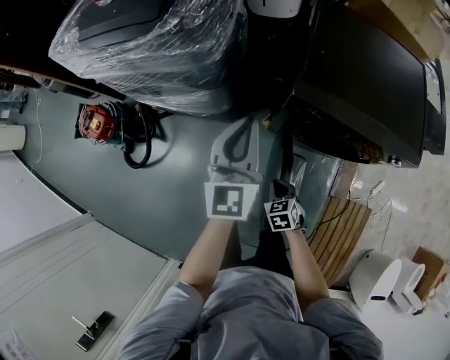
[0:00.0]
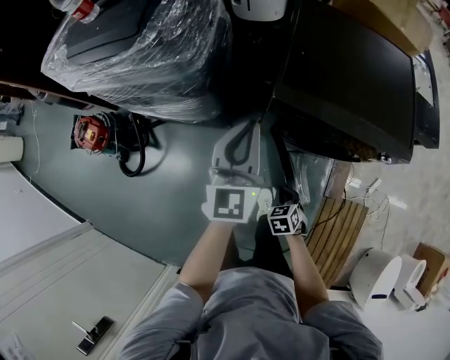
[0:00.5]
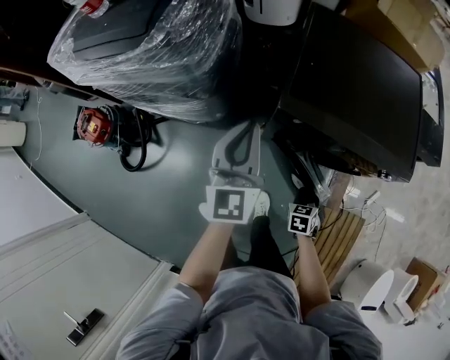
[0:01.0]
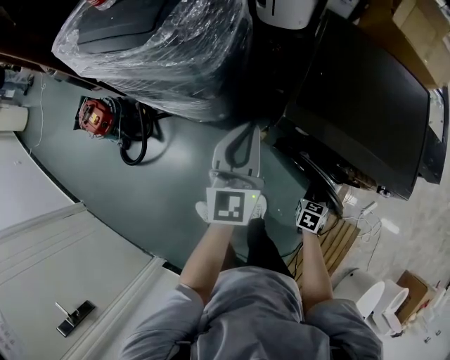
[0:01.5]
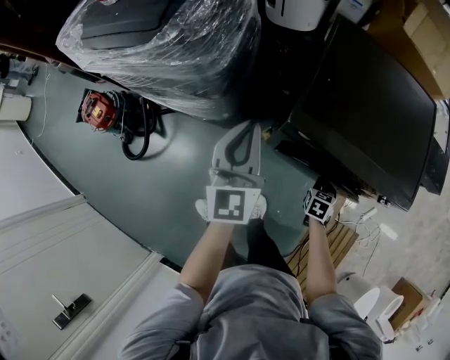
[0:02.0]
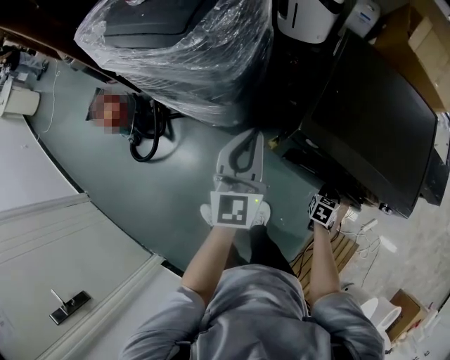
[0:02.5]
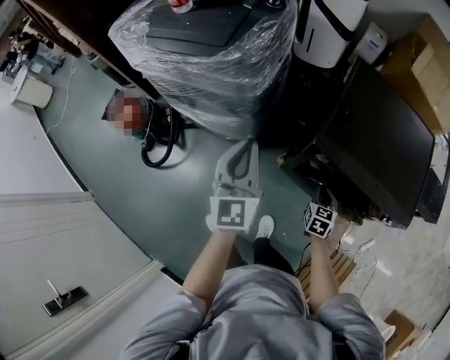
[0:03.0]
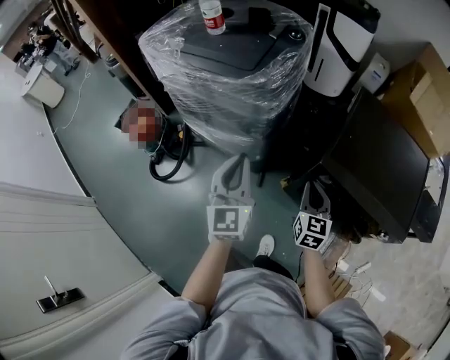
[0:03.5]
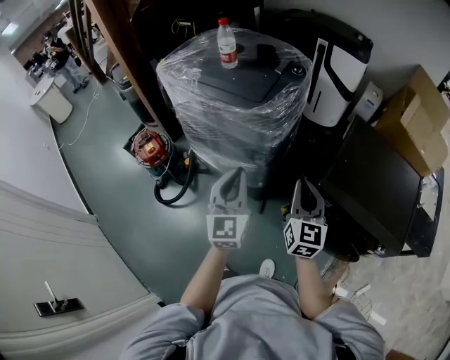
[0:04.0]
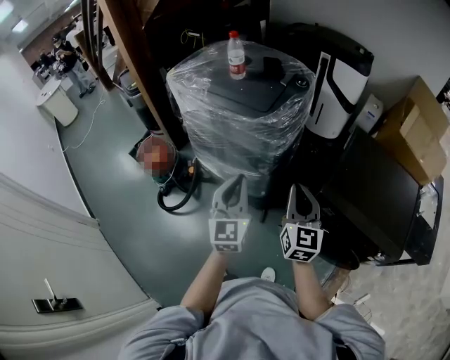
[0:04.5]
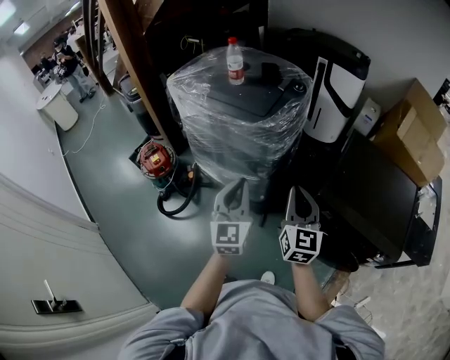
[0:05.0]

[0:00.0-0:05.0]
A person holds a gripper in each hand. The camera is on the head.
0:00.0 to 0:02.5: The right gripper shifts some 25 cm to the right and forward, and rotates roughly 30 degrees.
0:02.5 to 0:05.0: The left gripper changes place by approximately 25 cm, while the right gripper goes roughly 40 cm upward, and tilts its fingers about 50 degrees upward.

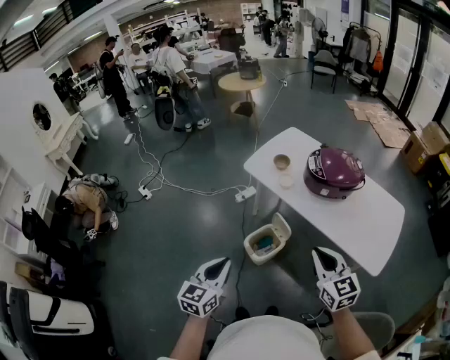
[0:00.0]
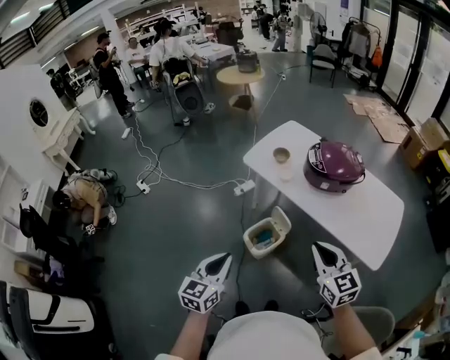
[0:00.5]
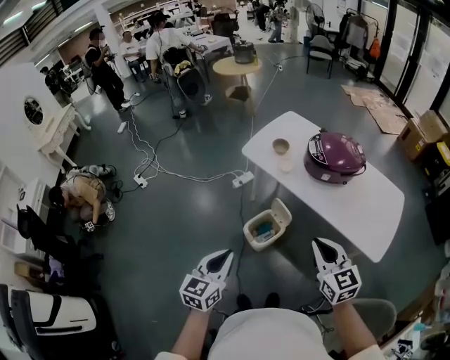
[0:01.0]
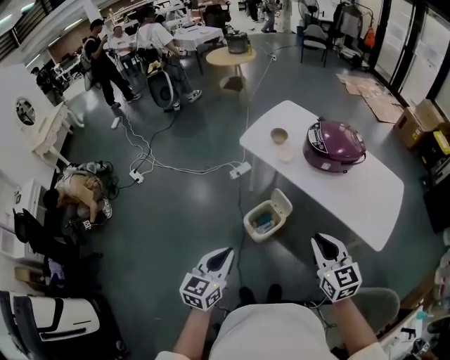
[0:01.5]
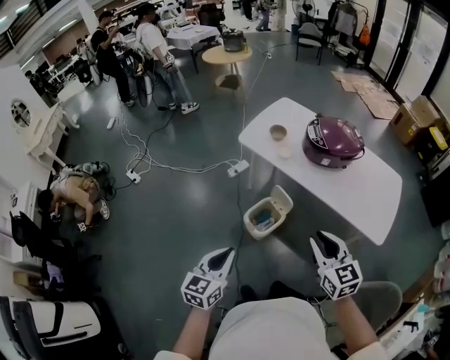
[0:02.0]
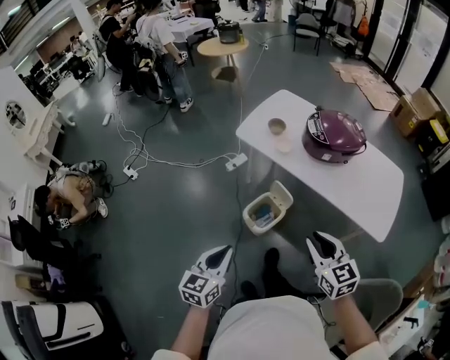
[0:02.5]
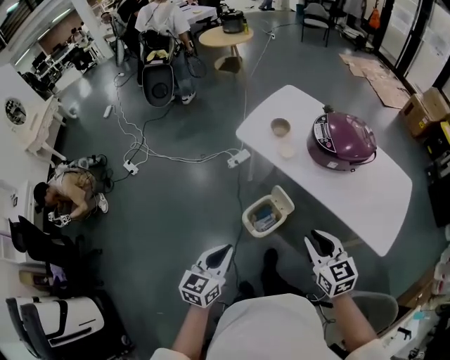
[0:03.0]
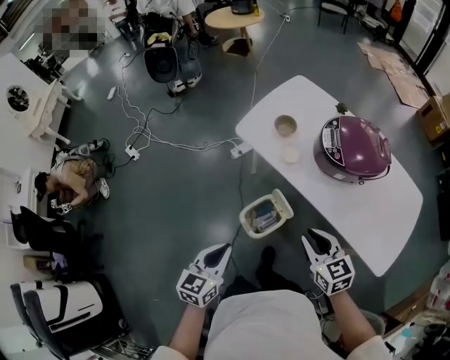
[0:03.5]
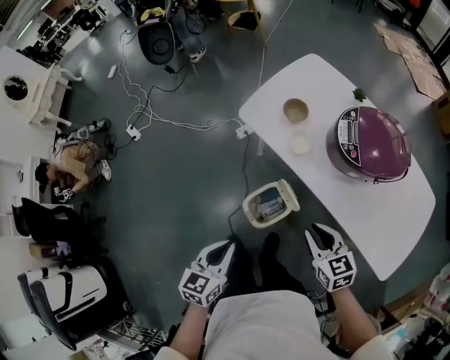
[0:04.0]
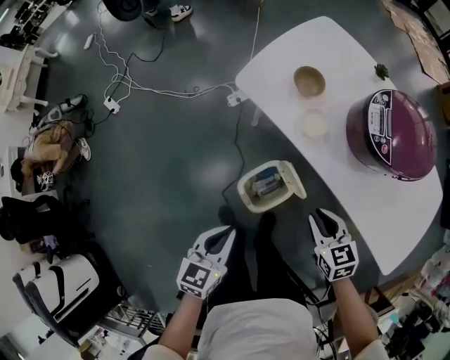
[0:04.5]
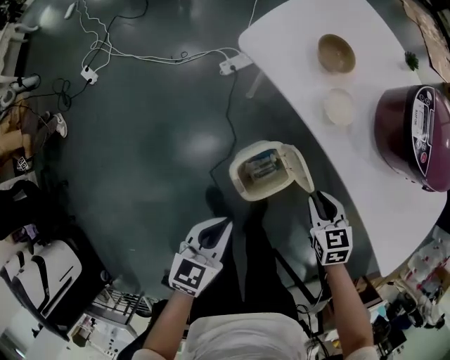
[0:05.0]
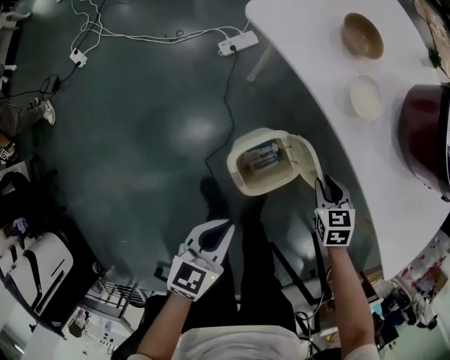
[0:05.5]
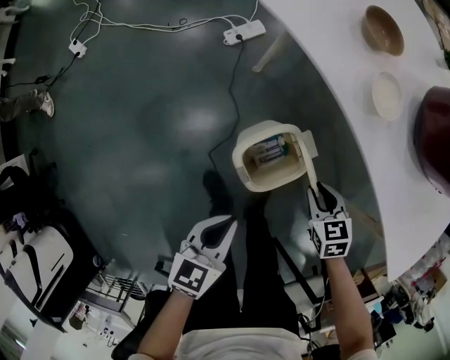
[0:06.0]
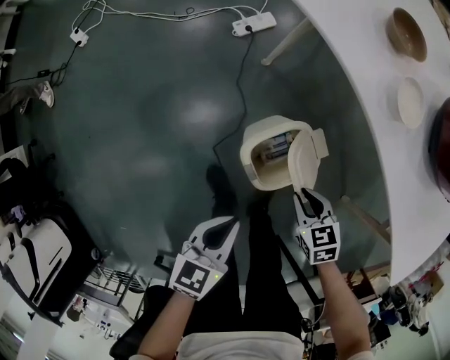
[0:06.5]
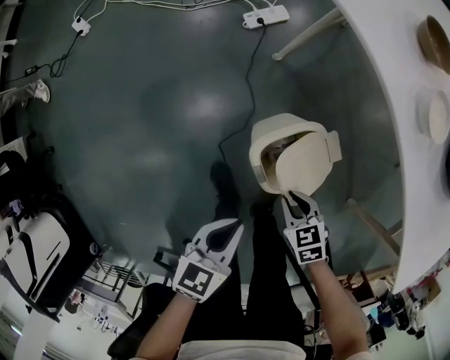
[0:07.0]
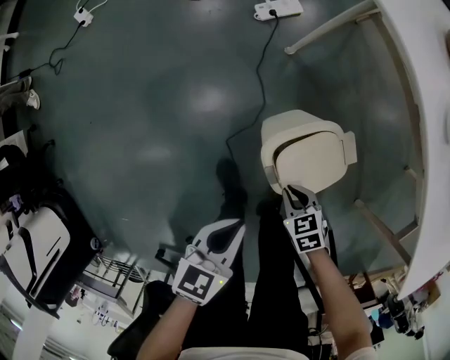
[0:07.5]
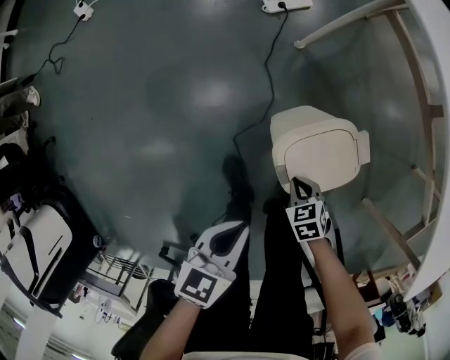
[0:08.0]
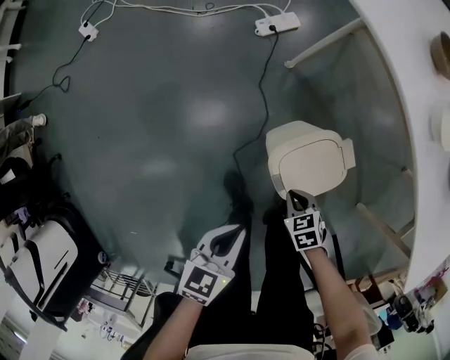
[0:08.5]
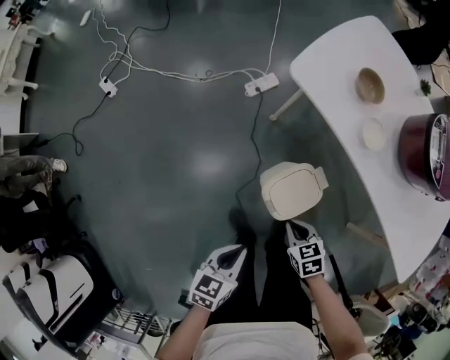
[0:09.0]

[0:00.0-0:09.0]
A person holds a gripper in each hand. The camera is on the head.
0:00.0 to 0:02.0: The left gripper shifts by approximately 5 cm. Meanwhile the right gripper goes approximately 5 cm to the left, and opens.
0:02.0 to 0:04.5: Both grippers travel together forward and downward, some 40 cm. The right gripper turns by some 30 degrees.
0:04.5 to 0:07.0: The right gripper travels downward and to the left by some 35 cm, and rotates some 30 degrees. Meanwhile the left gripper is displaced downward by about 25 cm.
0:07.0 to 0:09.0: The right gripper travels upward by approximately 15 cm, while the left gripper heads upward and to the left, covering about 15 cm.

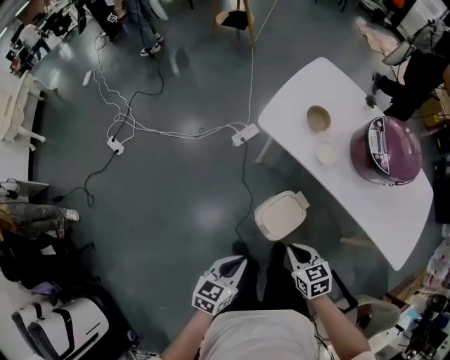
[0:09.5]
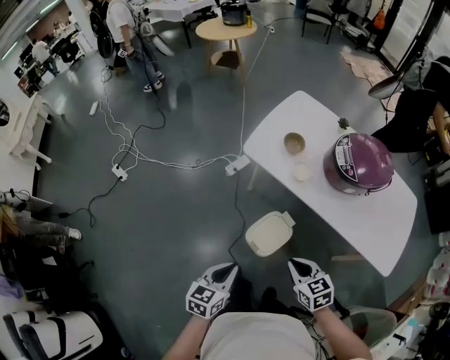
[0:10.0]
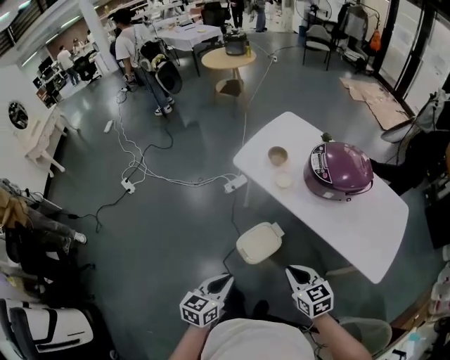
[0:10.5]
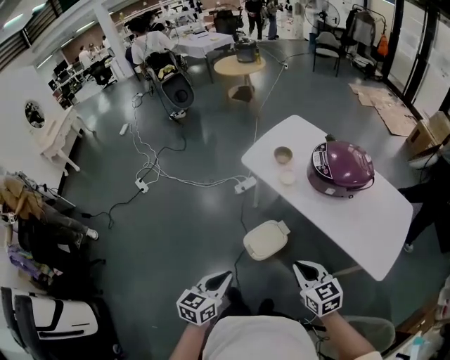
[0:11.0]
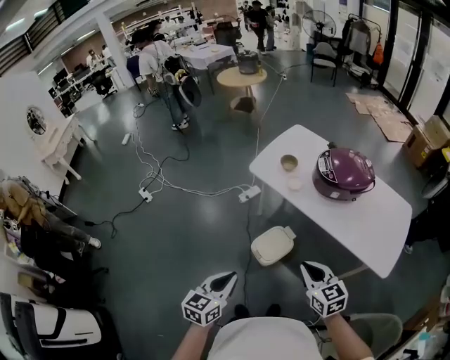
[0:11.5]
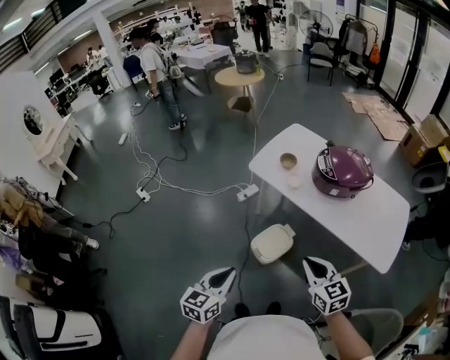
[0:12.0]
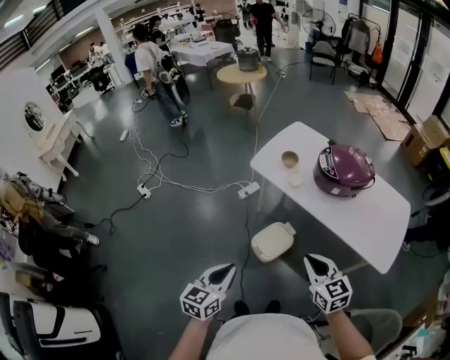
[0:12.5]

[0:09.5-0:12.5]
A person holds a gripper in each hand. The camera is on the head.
0:09.5 to 0:11.0: The left gripper shifts roughly 25 cm upward, backward and to the right. Meanwhile the right gripper heads upward, to the right and backward, covering roughly 30 cm, and turns by about 20 degrees.
0:11.0 to 0:12.5: The left gripper moves to the left, approximately 5 cm, while the right gripper goes roughly 5 cm upward.

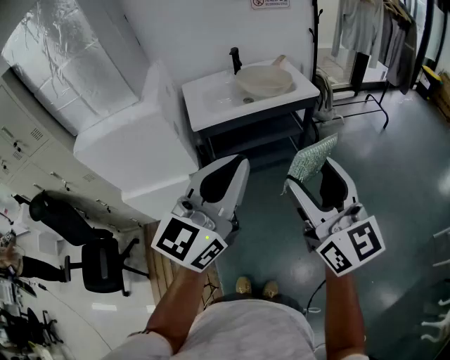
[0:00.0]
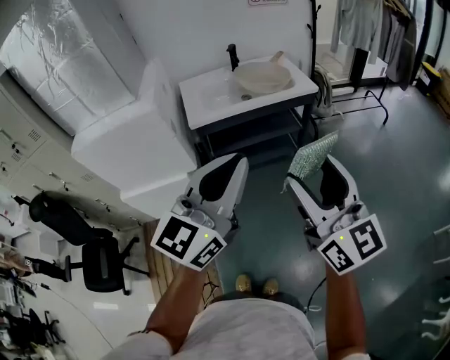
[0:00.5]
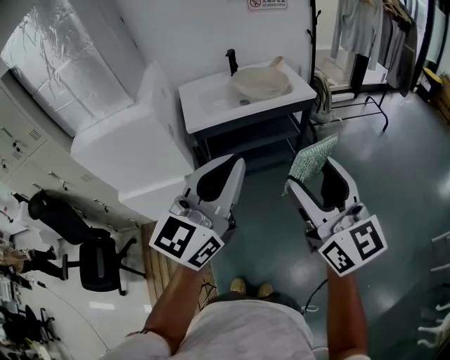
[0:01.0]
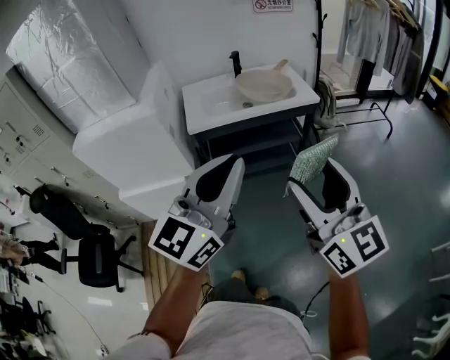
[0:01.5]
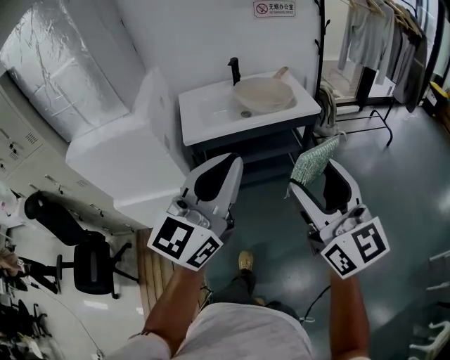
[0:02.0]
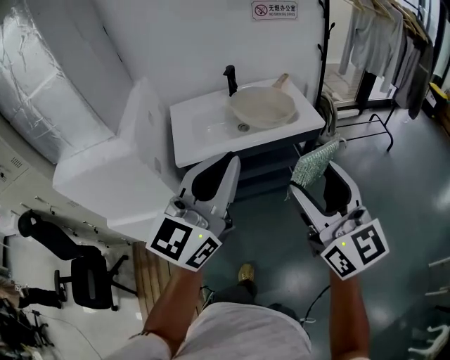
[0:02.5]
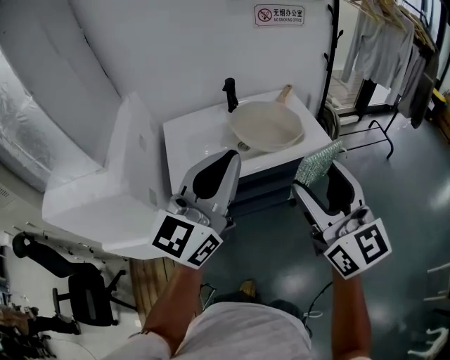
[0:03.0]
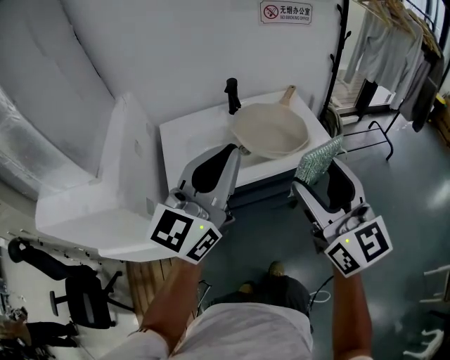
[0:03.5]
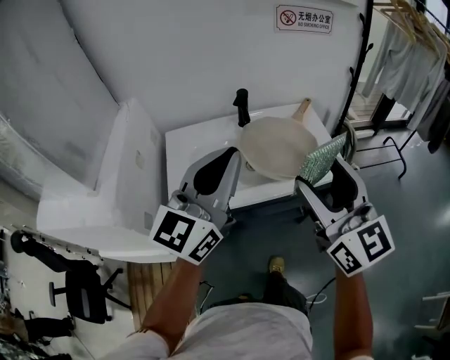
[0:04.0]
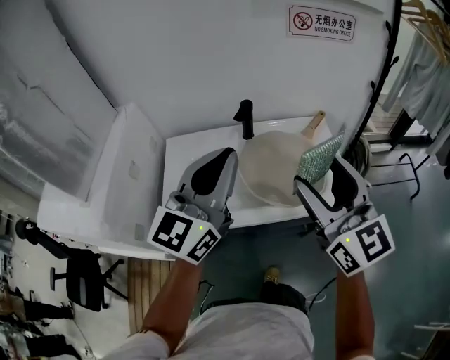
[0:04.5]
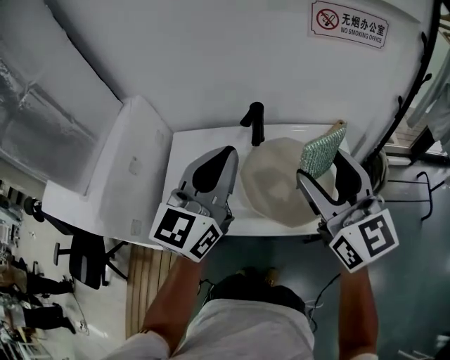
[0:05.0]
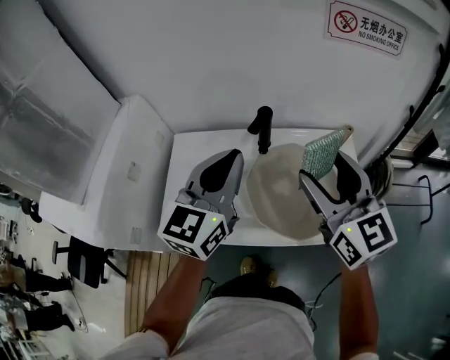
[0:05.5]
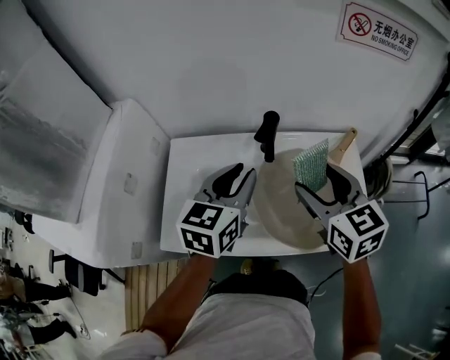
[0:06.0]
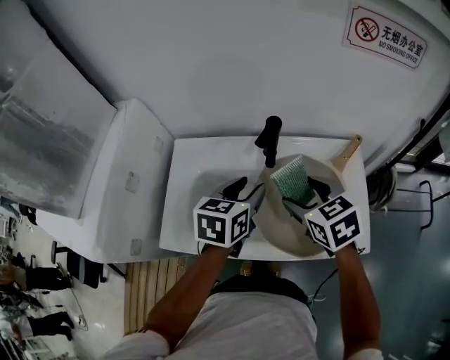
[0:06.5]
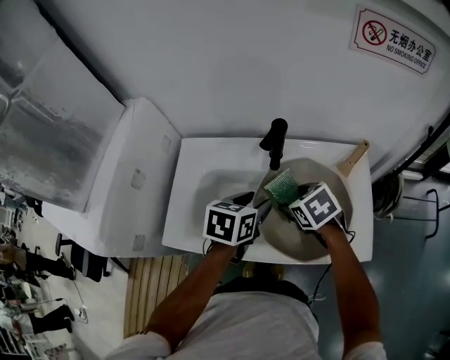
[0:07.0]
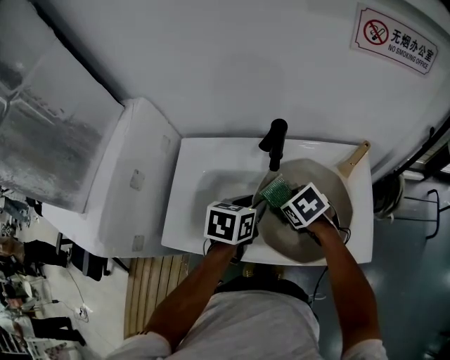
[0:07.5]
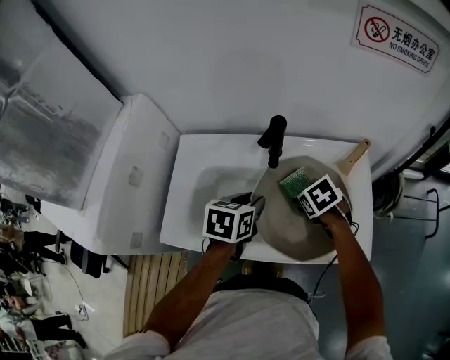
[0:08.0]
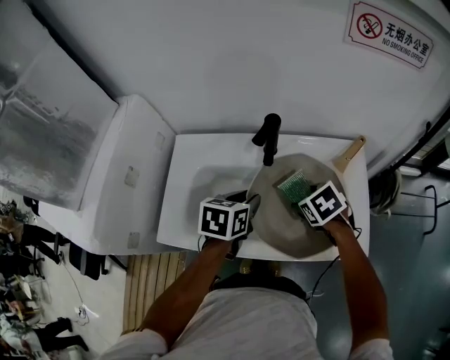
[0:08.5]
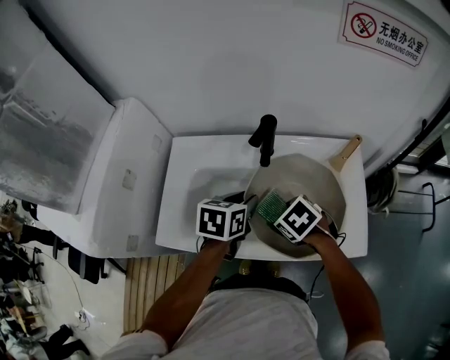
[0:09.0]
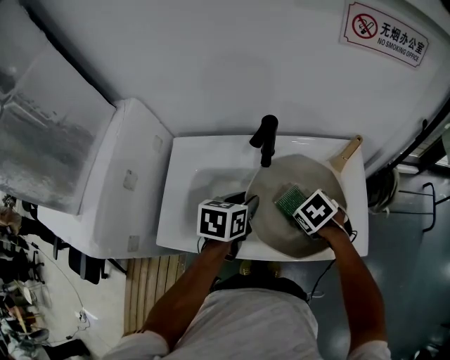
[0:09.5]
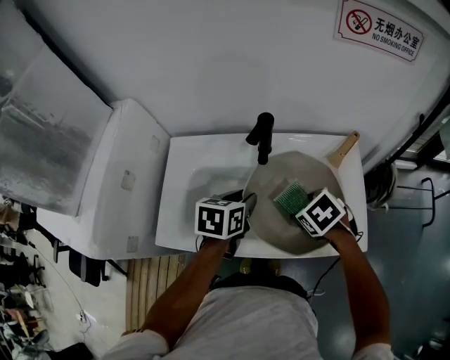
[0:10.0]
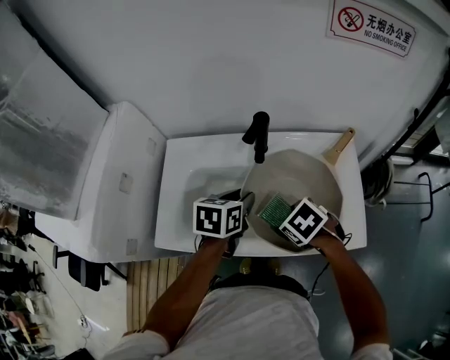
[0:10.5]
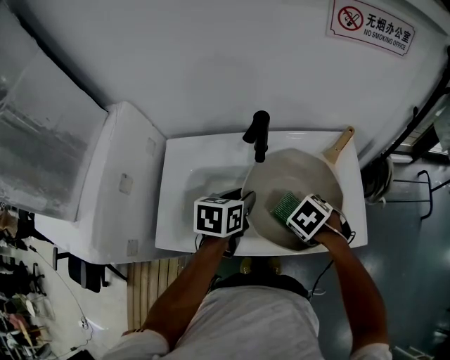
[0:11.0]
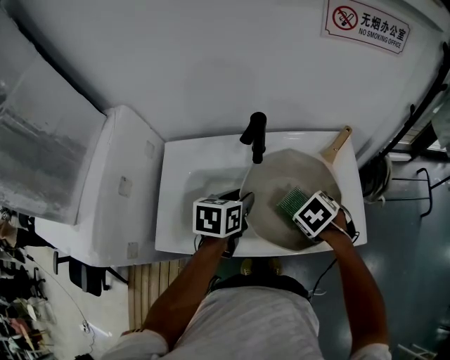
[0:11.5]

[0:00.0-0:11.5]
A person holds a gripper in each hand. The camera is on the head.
0:00.0 to 0:02.0: The grippers both shift forward by some 10 cm.
0:02.0 to 0:04.0: The two grippers go roughly 40 cm forward.
0:04.0 to 0:06.0: Both grippers travel together forward and downward, some 30 cm. The right gripper rotates approximately 30 degrees. Meanwhile the left gripper tilts its fingers approximately 30 degrees downward, and opens.
0:06.0 to 0:07.5: The two grippers go roughly 15 cm downward. The left gripper changes its angle by approximately 30 degrees. The right gripper angles its fingers downward, by roughly 40 degrees.
0:07.5 to 0:09.5: The right gripper heads to the right, covering roughly 5 cm.
